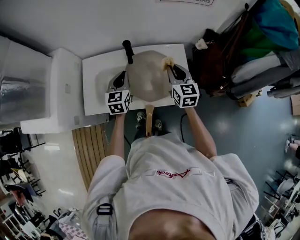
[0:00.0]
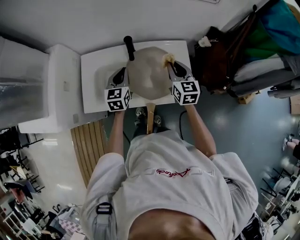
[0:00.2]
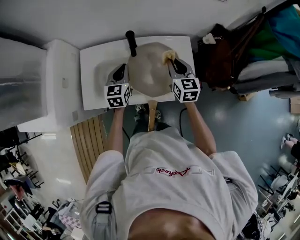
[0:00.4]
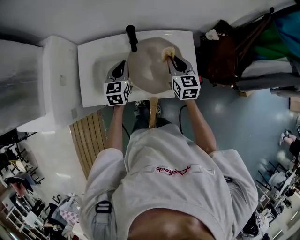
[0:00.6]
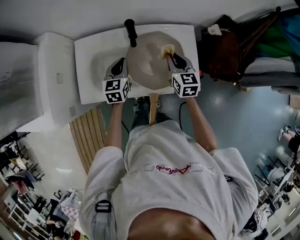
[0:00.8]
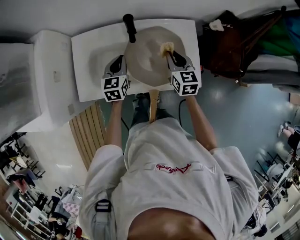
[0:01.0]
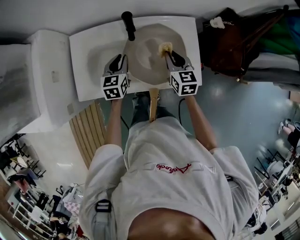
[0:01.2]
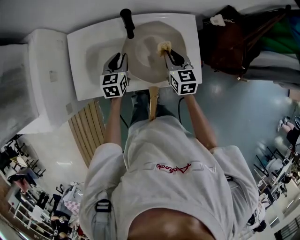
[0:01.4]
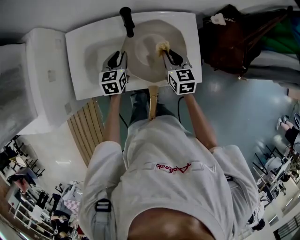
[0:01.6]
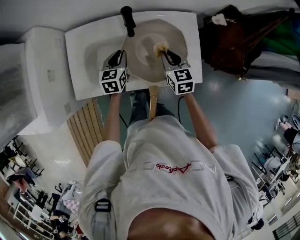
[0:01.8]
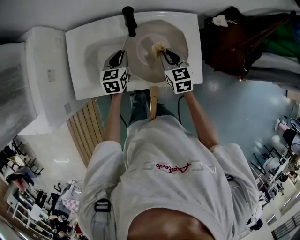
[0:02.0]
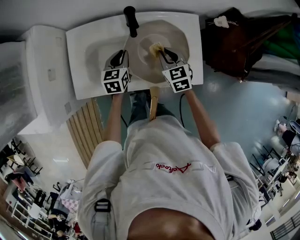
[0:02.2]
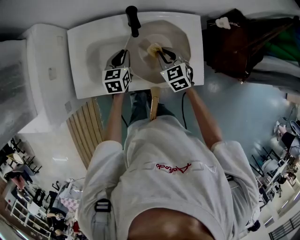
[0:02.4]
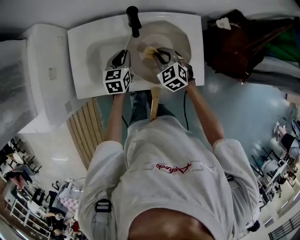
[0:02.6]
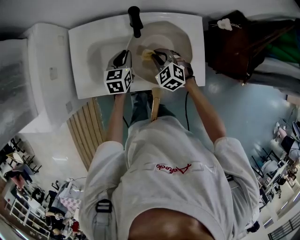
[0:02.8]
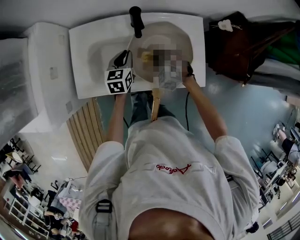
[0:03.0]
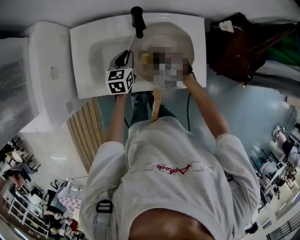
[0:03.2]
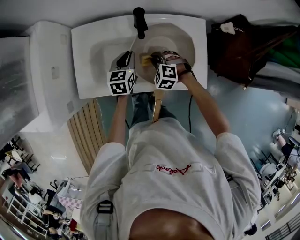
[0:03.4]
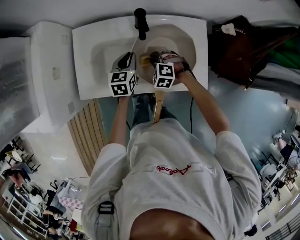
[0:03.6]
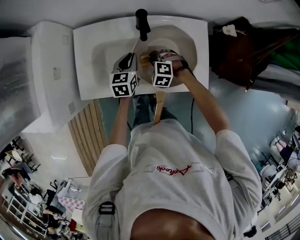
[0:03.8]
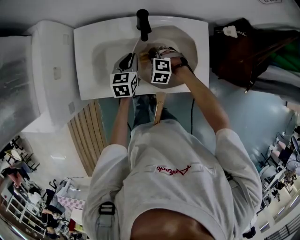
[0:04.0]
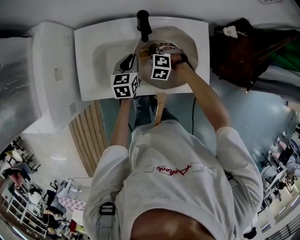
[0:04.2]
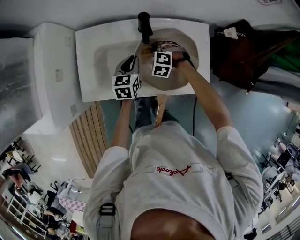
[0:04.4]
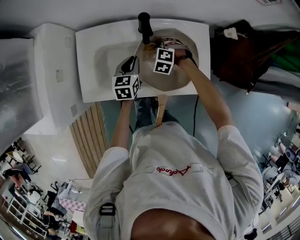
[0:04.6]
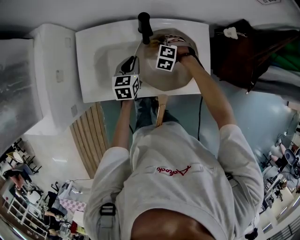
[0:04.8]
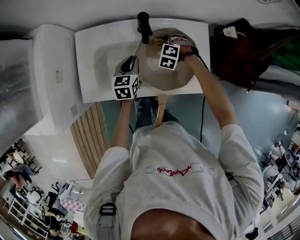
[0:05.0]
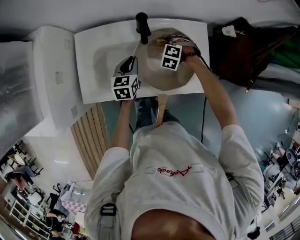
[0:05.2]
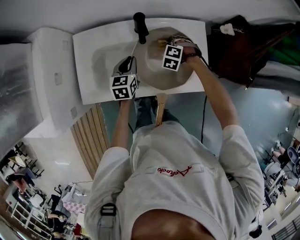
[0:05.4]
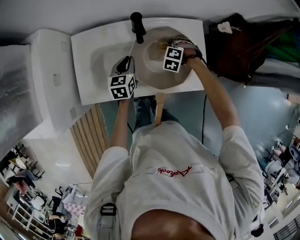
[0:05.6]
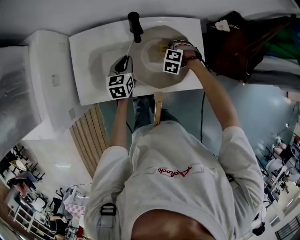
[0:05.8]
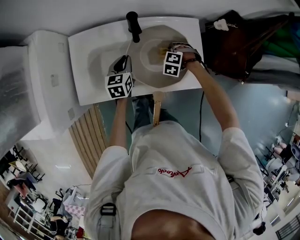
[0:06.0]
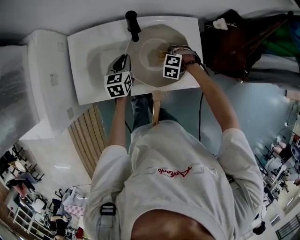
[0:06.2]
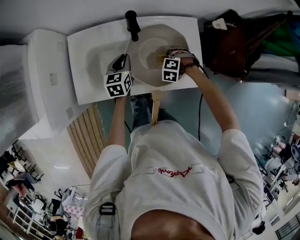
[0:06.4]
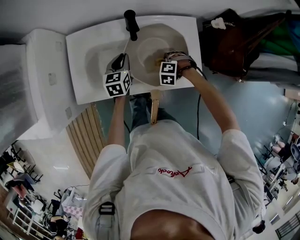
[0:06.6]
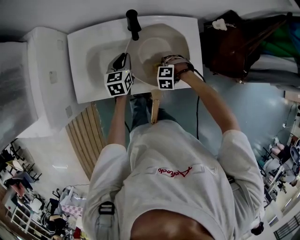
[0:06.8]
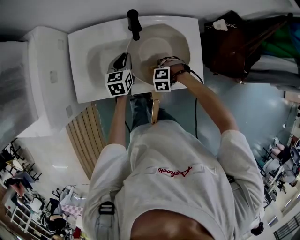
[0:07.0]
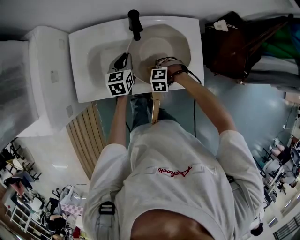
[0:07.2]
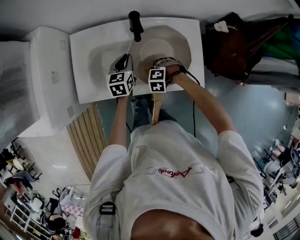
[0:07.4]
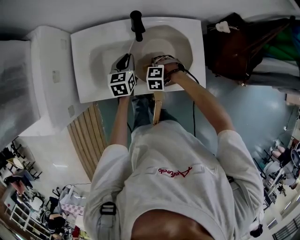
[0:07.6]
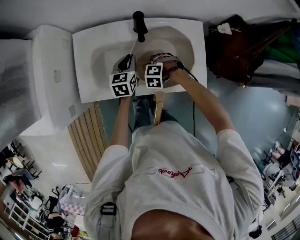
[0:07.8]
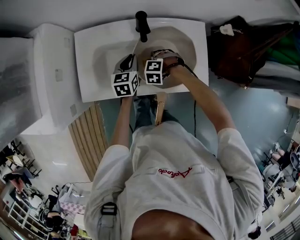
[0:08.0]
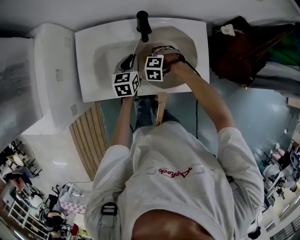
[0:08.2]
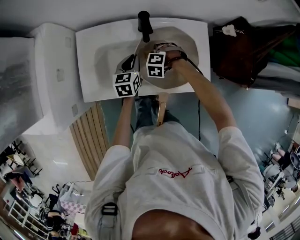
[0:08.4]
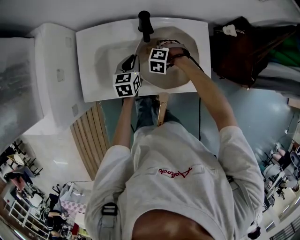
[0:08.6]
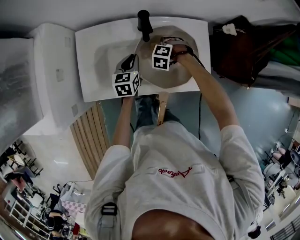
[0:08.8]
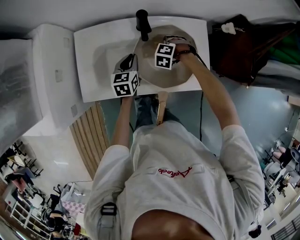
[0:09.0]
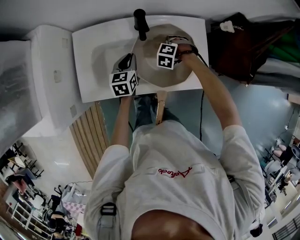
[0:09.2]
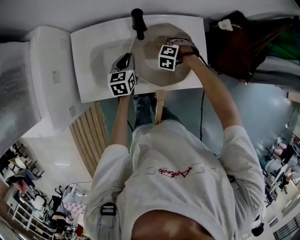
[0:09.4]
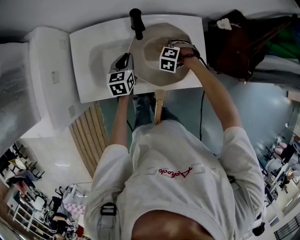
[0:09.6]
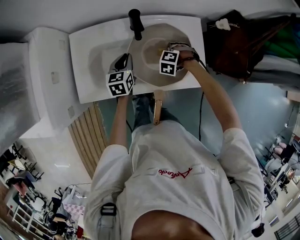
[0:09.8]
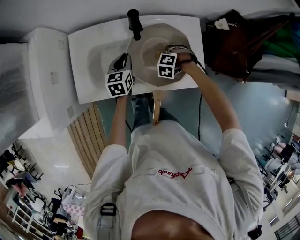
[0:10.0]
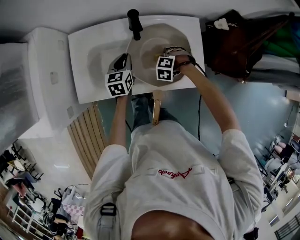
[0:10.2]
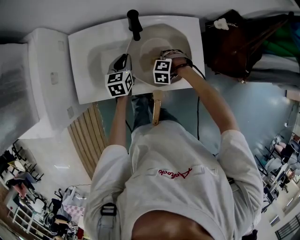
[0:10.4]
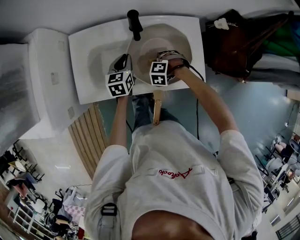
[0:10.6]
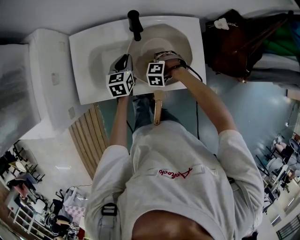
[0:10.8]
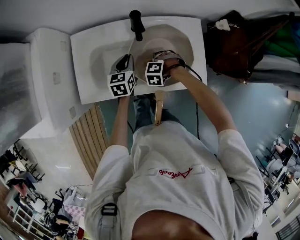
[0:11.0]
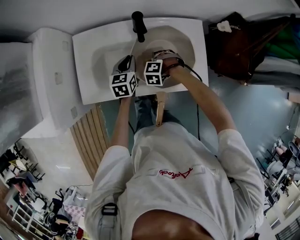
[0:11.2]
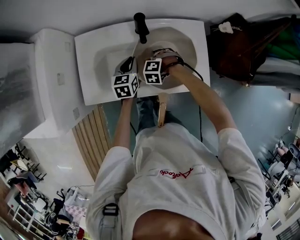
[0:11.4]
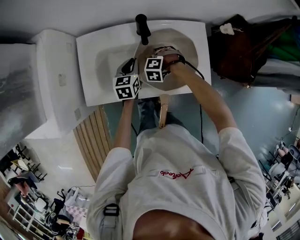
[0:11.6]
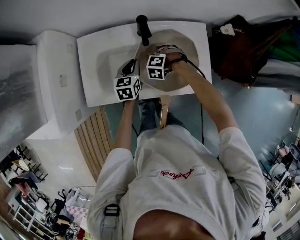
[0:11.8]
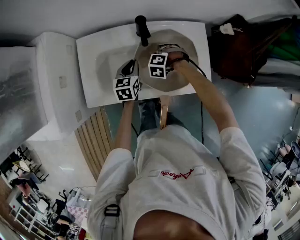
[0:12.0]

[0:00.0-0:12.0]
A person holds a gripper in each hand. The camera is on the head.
0:00.0 to 0:01.6: The right gripper moves downward and to the left, about 15 cm, while the left gripper heads downward, covering approximately 15 cm, and opens up.
0:01.6 to 0:03.0: The right gripper shifts approximately 10 cm to the left and downward, and rolls counterclockwise, seen from behind, by approximately 50 degrees.
0:03.0 to 0:04.4: The right gripper heads forward, covering approximately 5 cm.
0:04.4 to 0:06.0: The right gripper is displaced to the right by approximately 15 cm.
0:06.0 to 0:07.6: The right gripper shifts by approximately 15 cm.
0:07.6 to 0:09.0: The right gripper ends up approximately 10 cm from where it was.
0:09.0 to 0:10.4: The right gripper moves roughly 10 cm.
0:10.4 to 0:12.0: The right gripper changes place by some 10 cm.

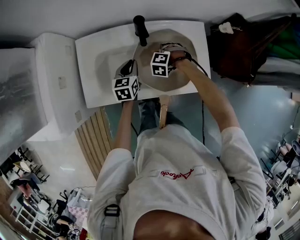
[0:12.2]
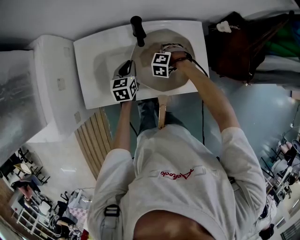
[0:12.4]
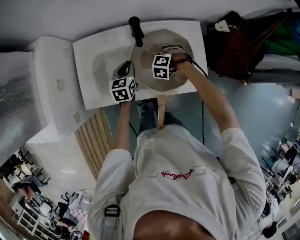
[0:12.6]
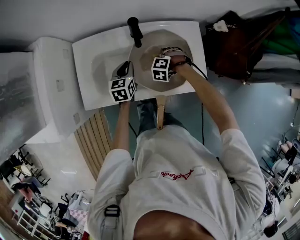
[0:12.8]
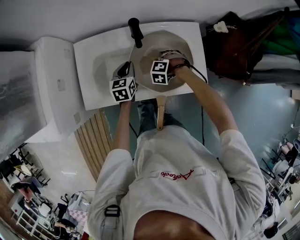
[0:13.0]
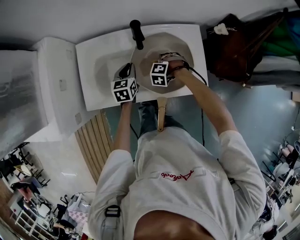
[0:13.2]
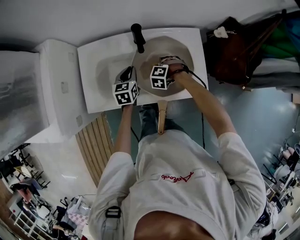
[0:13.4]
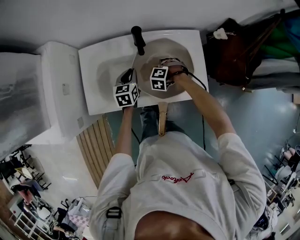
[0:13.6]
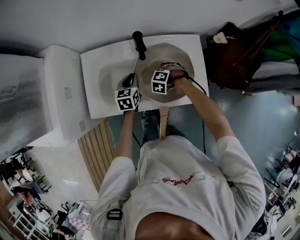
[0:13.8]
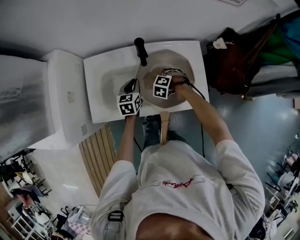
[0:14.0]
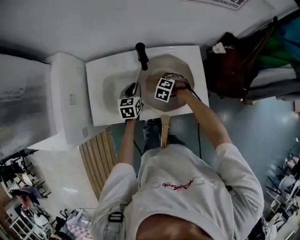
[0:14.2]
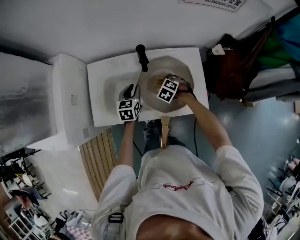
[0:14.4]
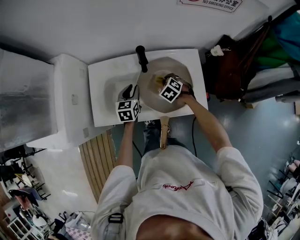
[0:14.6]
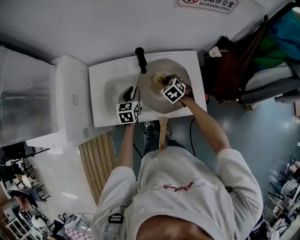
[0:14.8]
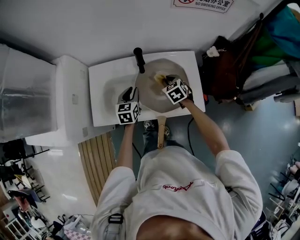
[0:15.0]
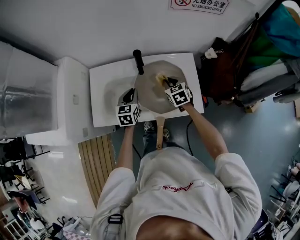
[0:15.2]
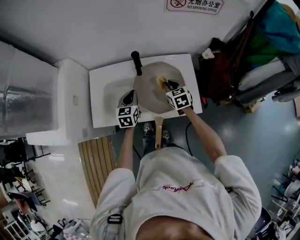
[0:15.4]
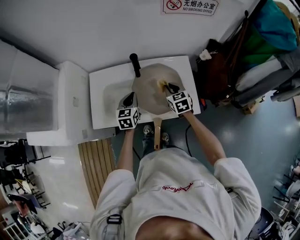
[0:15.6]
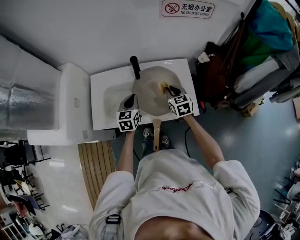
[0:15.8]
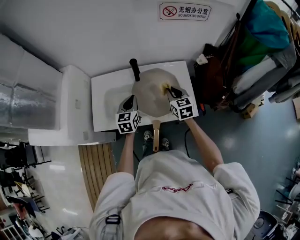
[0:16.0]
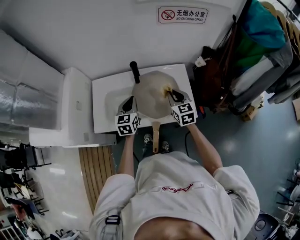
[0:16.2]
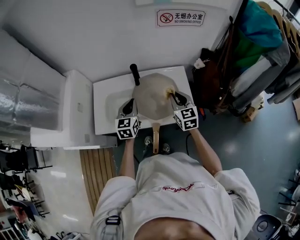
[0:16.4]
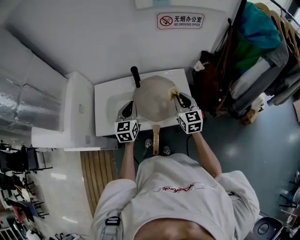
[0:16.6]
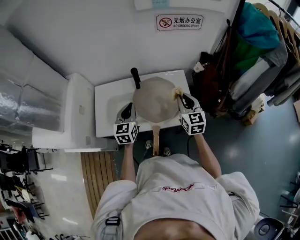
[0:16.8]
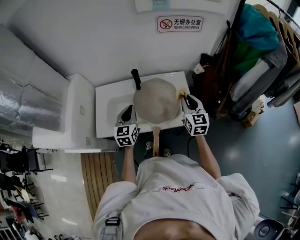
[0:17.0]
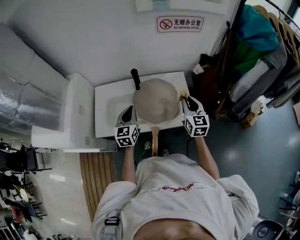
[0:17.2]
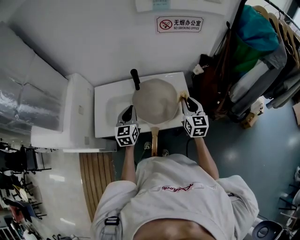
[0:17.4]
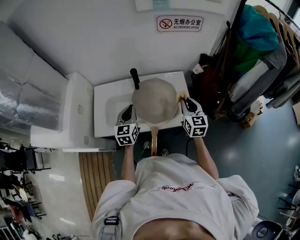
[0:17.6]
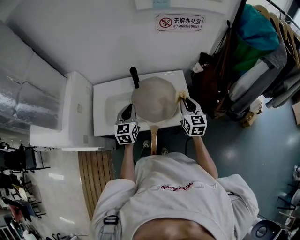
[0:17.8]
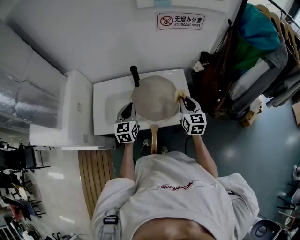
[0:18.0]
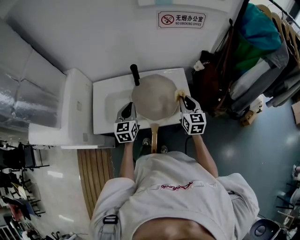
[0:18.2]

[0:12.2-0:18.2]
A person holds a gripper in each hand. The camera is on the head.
0:12.2 to 0:13.8: The grippers move only a little.
0:13.8 to 0:15.2: The right gripper travels upward by about 10 cm, and rolls clockwise, seen from behind, by approximately 60 degrees. Meanwhile the left gripper goes some 5 cm upward.
0:15.2 to 0:16.6: The right gripper heads upward, backward and to the right, covering roughly 20 cm, and changes its angle by about 30 degrees. The left gripper goes some 10 cm upward and backward.
0:16.6 to 0:18.2: There are only small adjustments of the grippers.

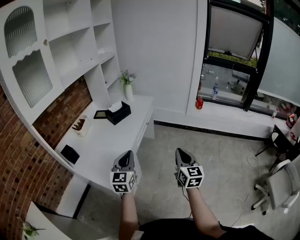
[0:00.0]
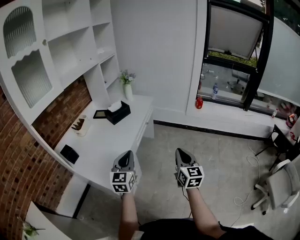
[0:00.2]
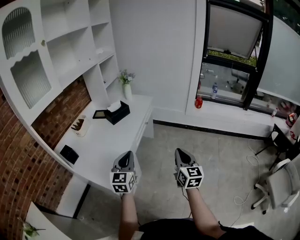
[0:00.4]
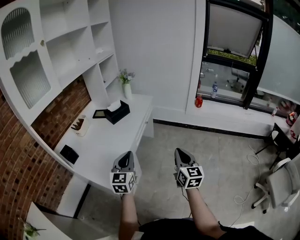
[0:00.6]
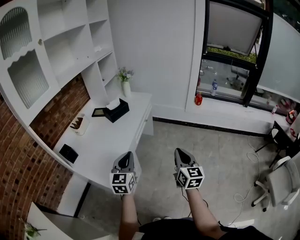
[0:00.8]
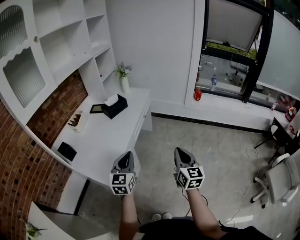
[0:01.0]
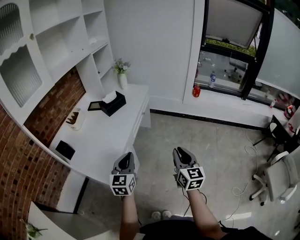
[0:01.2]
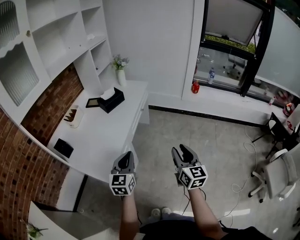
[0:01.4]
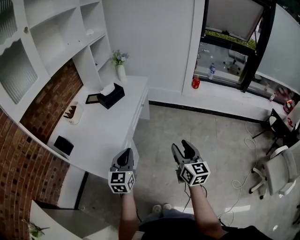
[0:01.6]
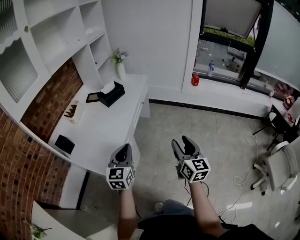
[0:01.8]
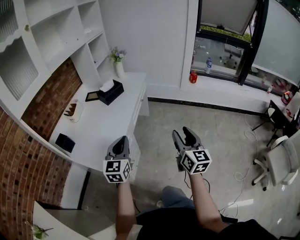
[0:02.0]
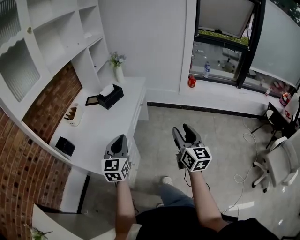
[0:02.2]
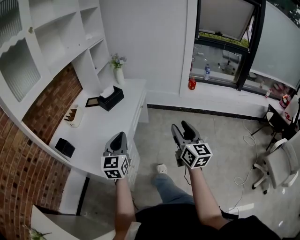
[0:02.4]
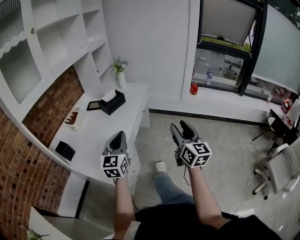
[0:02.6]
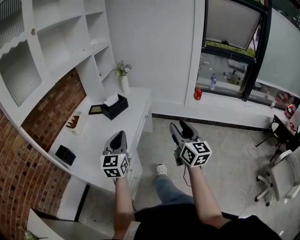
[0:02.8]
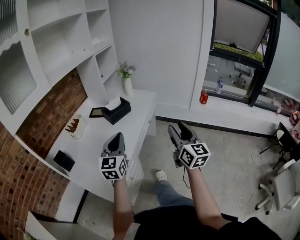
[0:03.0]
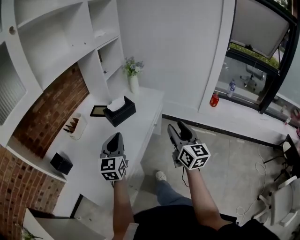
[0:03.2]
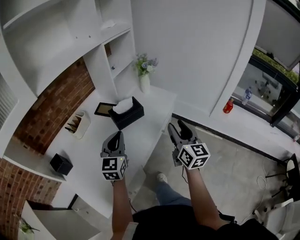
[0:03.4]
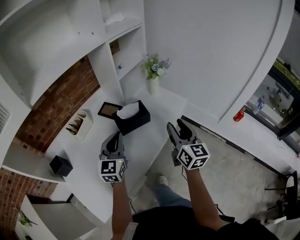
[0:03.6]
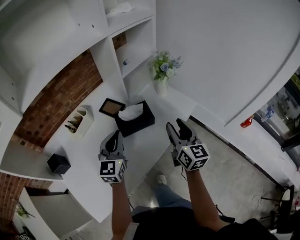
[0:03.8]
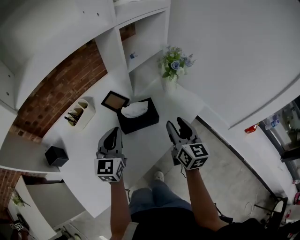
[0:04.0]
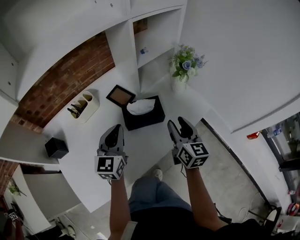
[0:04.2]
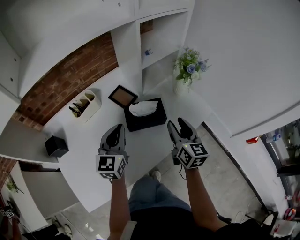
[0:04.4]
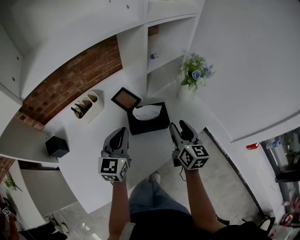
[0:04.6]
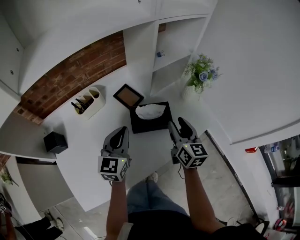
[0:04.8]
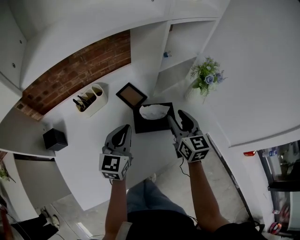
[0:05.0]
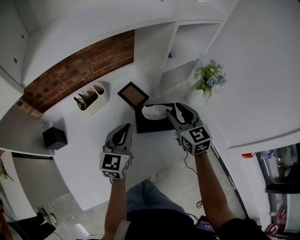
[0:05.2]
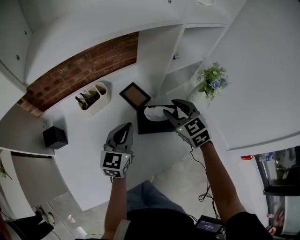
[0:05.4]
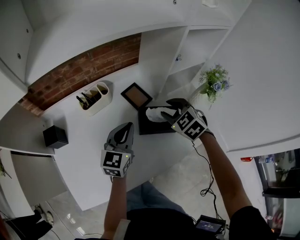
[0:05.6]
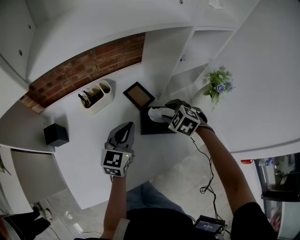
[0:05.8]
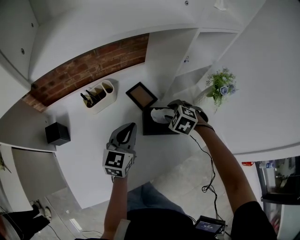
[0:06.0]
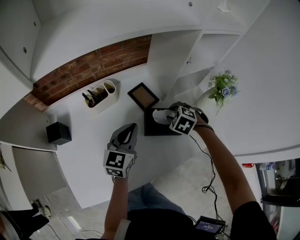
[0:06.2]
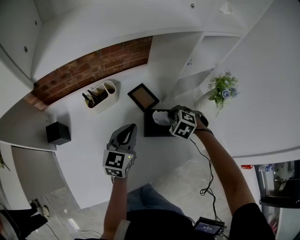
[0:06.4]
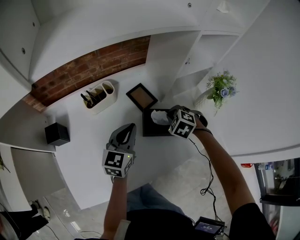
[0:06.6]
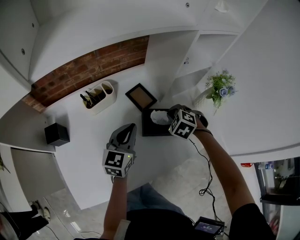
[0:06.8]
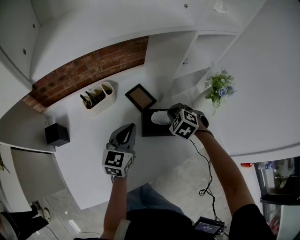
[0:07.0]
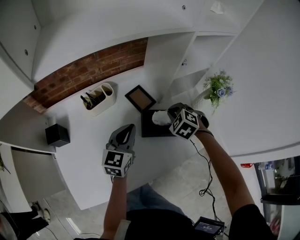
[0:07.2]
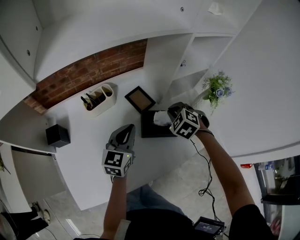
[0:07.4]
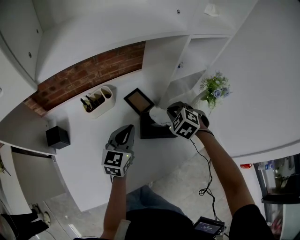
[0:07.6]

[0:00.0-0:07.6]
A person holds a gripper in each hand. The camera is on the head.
0:00.0 to 0:01.6: The left gripper moves some 5 cm. The right gripper opens.
0:01.6 to 0:03.0: The right gripper goes roughly 15 cm forward. The left gripper is displaced forward and to the left by roughly 15 cm.
0:03.0 to 0:04.6: The left gripper changes place by roughly 35 cm, and swivels roughly 30 degrees; the right gripper changes place by about 50 cm, and rotates approximately 40 degrees.
0:04.6 to 0:06.0: The right gripper heads to the left, forward and downward, covering some 20 cm, and tips its fingers downward by some 50 degrees. The left gripper ends up some 5 cm from where it was.
0:06.0 to 0:07.6: The right gripper heads upward, covering approximately 5 cm, and closes its fingers.
